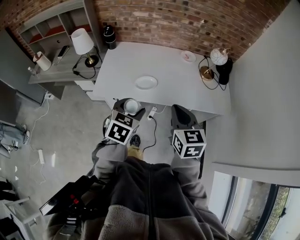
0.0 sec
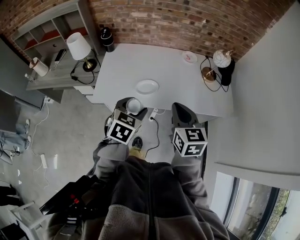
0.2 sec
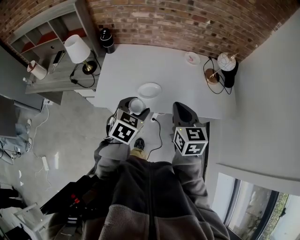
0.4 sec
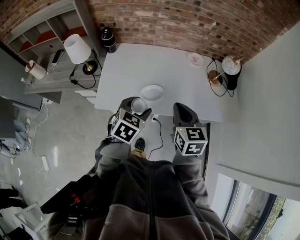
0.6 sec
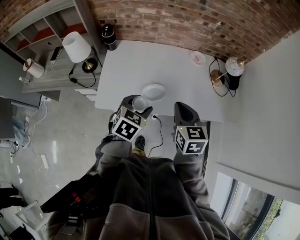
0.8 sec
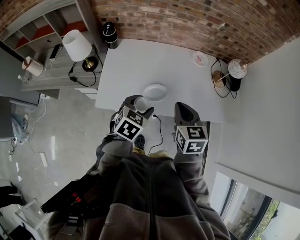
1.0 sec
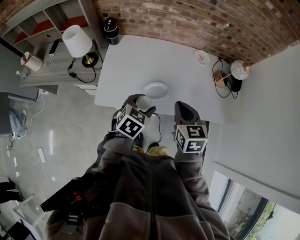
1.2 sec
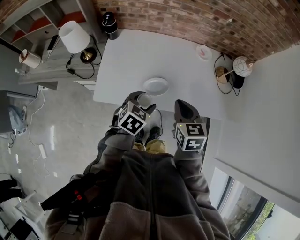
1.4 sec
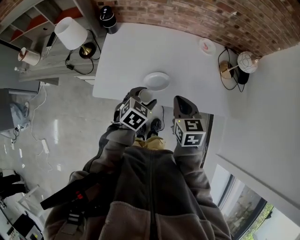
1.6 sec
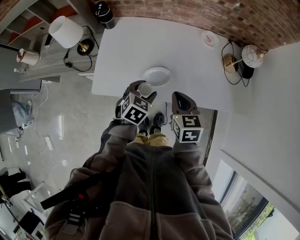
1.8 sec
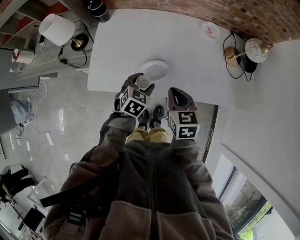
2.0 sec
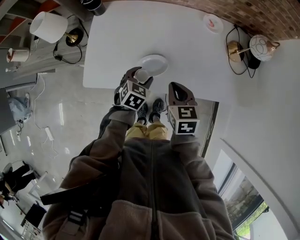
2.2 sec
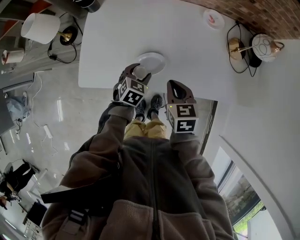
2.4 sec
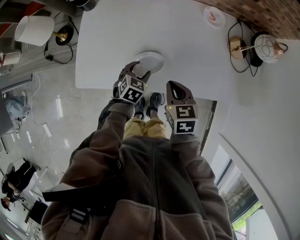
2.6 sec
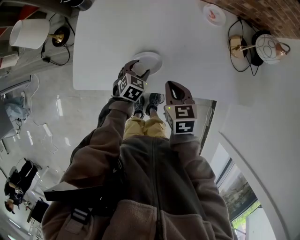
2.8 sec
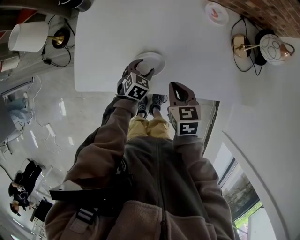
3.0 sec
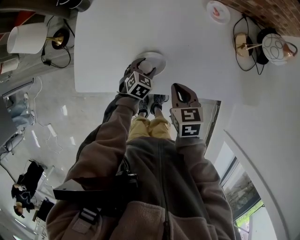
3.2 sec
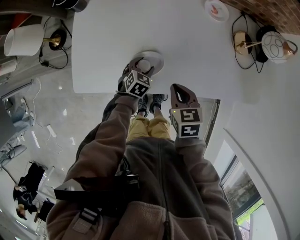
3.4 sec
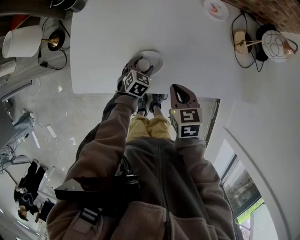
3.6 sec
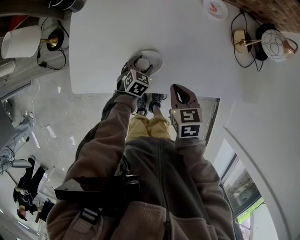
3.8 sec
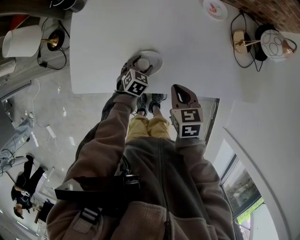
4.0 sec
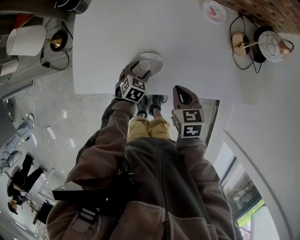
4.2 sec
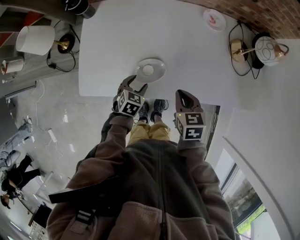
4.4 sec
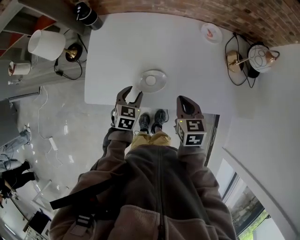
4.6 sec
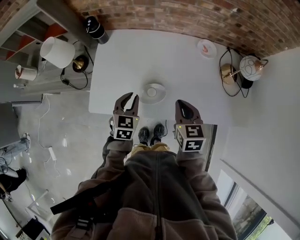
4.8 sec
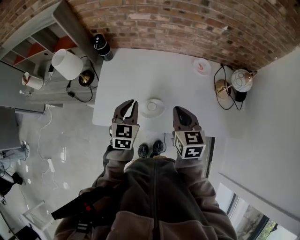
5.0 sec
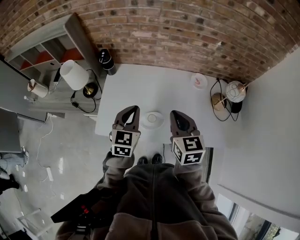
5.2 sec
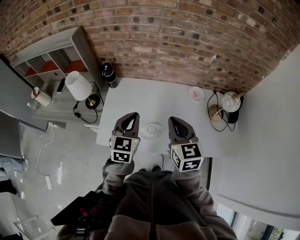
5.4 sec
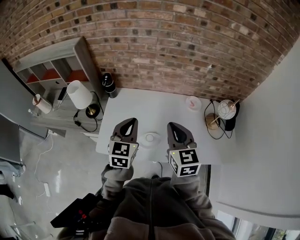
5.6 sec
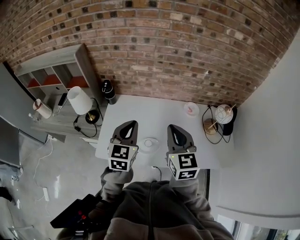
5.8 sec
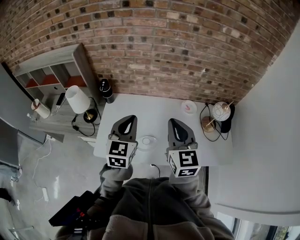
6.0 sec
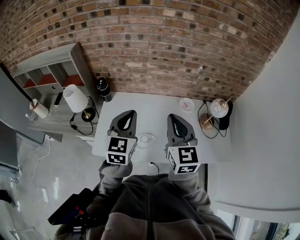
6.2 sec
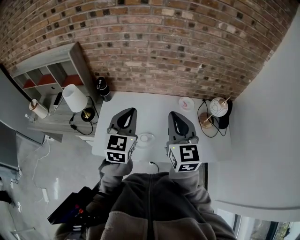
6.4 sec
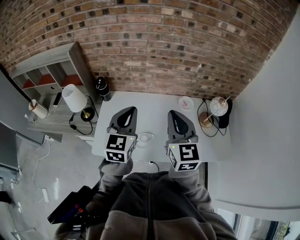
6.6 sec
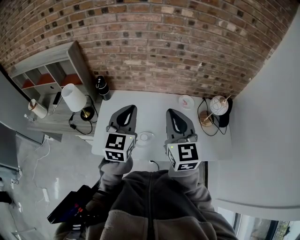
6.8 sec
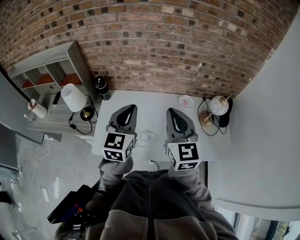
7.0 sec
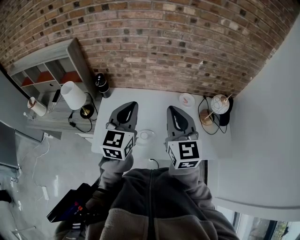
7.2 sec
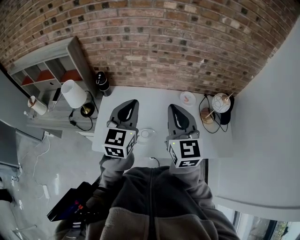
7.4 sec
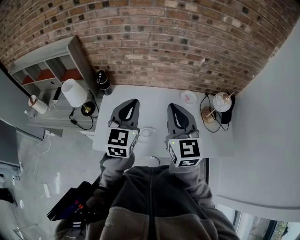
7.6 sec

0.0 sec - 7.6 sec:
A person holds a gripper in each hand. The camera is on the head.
0.0 sec - 1.6 sec: The right gripper is displaced forward, downward and to the left by approximately 20 cm; the left gripper is displaced forward and downward by roughly 20 cm.
1.6 sec - 3.0 sec: The right gripper shifts about 15 cm downward and forward. Meanwhile the left gripper shifts approximately 25 cm downward and forward.
3.0 sec - 4.6 sec: The left gripper moves upward and to the left, about 10 cm.
4.6 sec - 6.0 sec: The grippers both shift upward by about 35 cm. The right gripper tilts its fingers some 40 degrees upward; the left gripper tilts its fingers some 40 degrees upward, and closes.
6.0 sec - 7.6 sec: The grippers make only small movements.

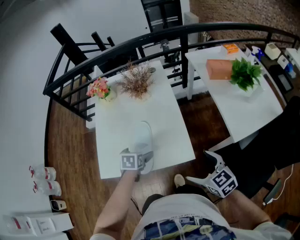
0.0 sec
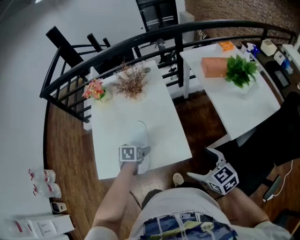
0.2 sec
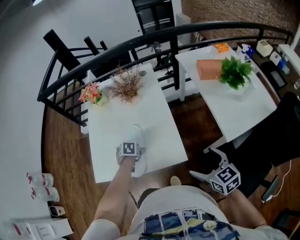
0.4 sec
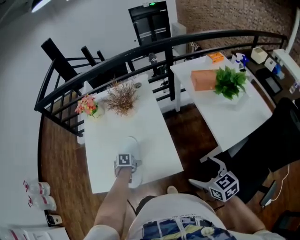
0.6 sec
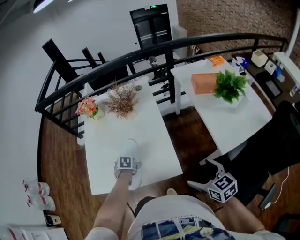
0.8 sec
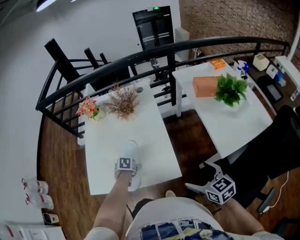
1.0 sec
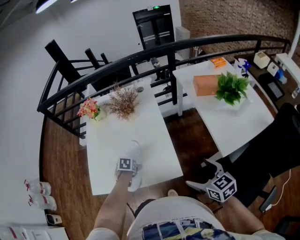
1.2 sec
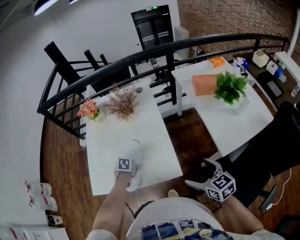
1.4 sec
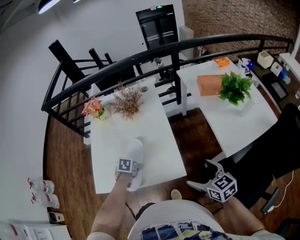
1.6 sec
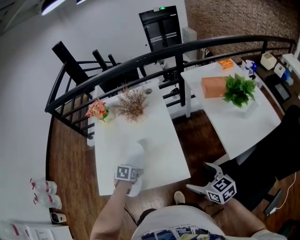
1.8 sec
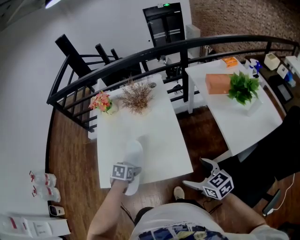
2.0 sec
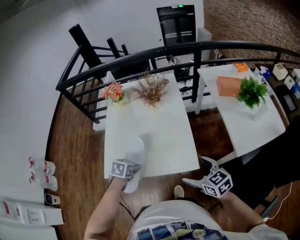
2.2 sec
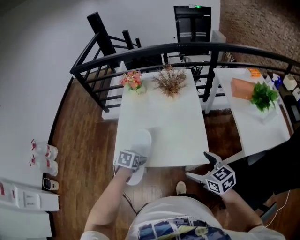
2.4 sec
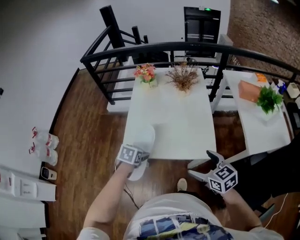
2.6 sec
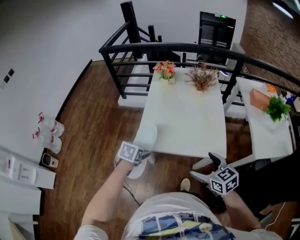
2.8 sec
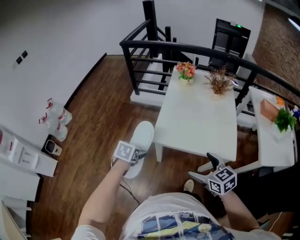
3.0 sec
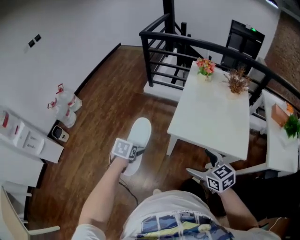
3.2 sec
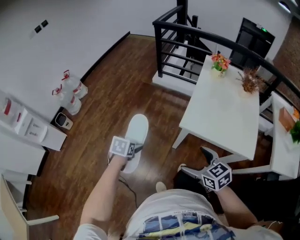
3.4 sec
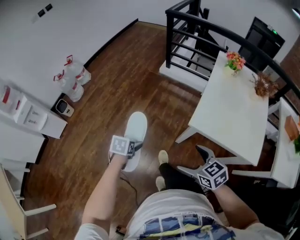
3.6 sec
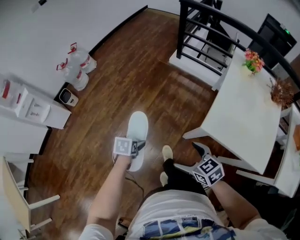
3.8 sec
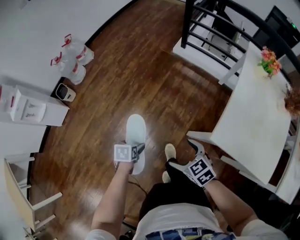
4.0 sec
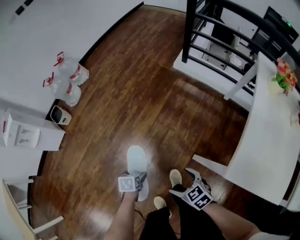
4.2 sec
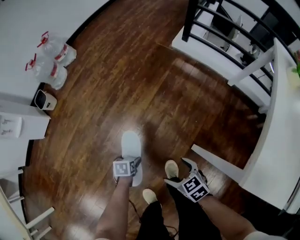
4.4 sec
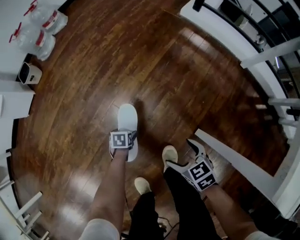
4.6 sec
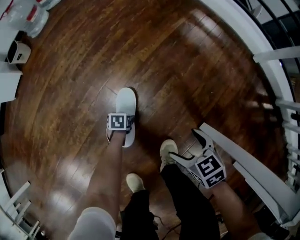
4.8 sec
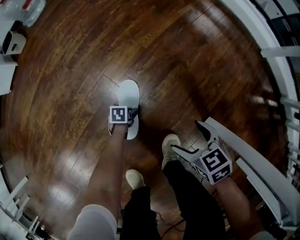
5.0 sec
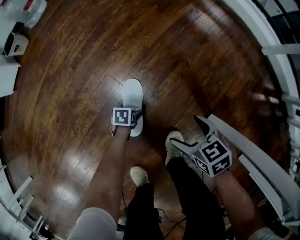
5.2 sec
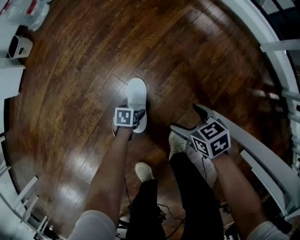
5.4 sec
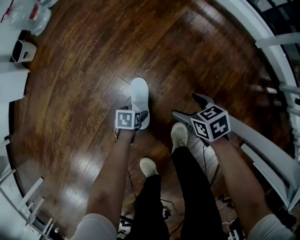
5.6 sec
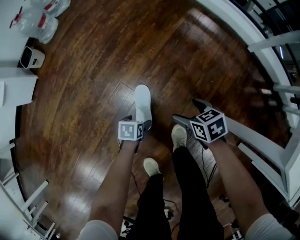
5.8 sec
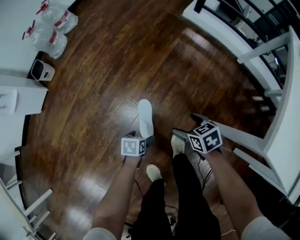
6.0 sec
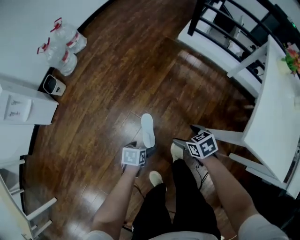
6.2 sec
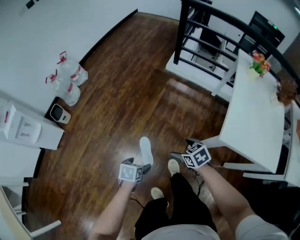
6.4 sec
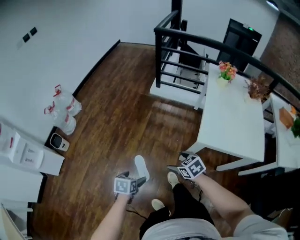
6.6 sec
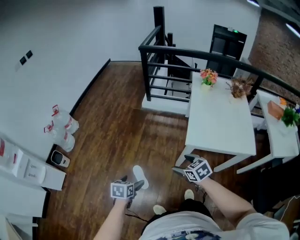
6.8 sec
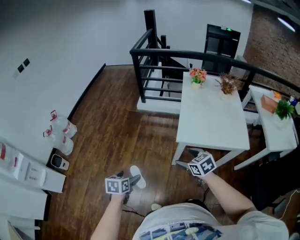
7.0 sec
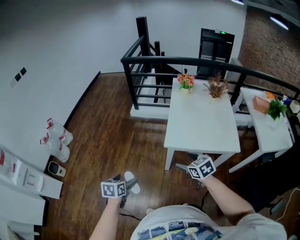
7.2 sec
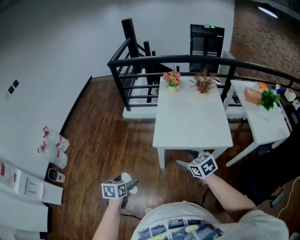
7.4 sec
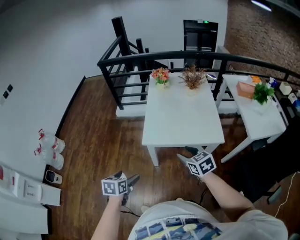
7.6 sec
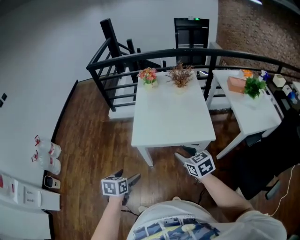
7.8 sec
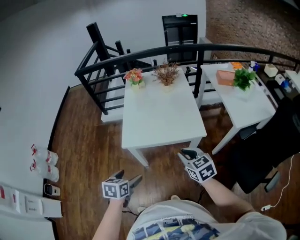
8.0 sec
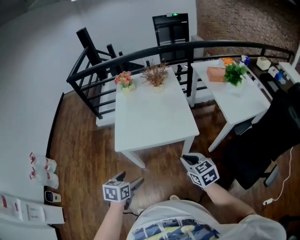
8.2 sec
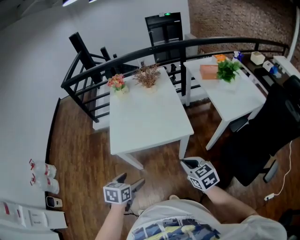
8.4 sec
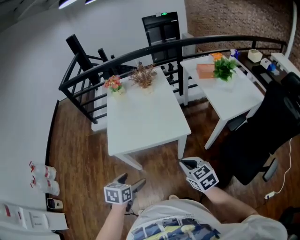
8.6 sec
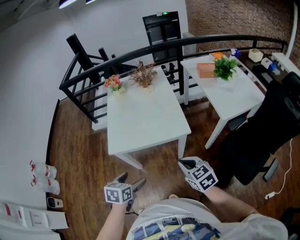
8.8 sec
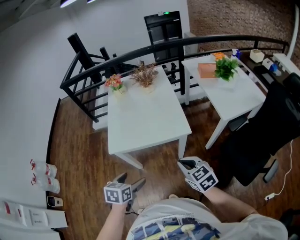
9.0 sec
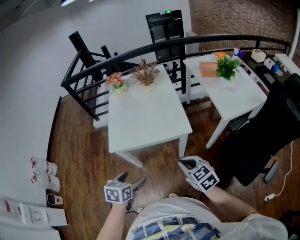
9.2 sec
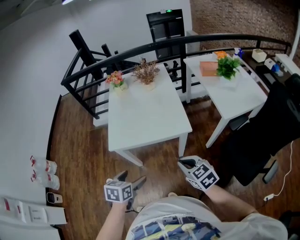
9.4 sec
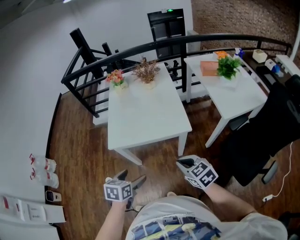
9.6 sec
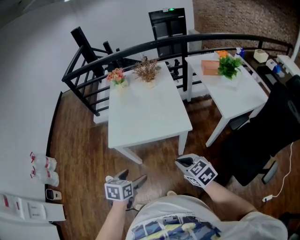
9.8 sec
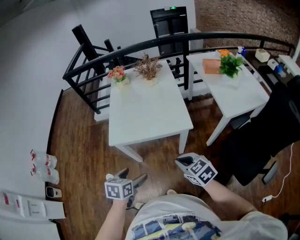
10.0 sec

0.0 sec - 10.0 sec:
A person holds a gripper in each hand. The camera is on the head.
0.0 sec - 1.4 sec: The right gripper changes place by roughly 10 cm; the left gripper travels downward by about 10 cm.
1.4 sec - 2.8 sec: The left gripper heads to the left and backward, covering some 35 cm, while the right gripper moves to the left, approximately 35 cm, and turns by some 20 degrees.
2.8 sec - 4.2 sec: Both grippers are carried approximately 50 cm. The left gripper rolls counterclockwise, seen from behind, by approximately 50 degrees; the right gripper turns by roughly 50 degrees.
4.2 sec - 5.8 sec: Both grippers travel together downward, some 35 cm.
5.8 sec - 7.2 sec: The two grippers go approximately 70 cm upward. The right gripper swivels roughly 40 degrees, while the left gripper rotates about 40 degrees.
7.2 sec - 8.6 sec: The grippers both shift to the right by approximately 40 cm. The left gripper swivels approximately 30 degrees, while the right gripper rotates about 20 degrees, and closes.
8.6 sec - 10.0 sec: There are only small adjustments of the grippers.

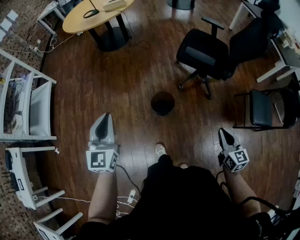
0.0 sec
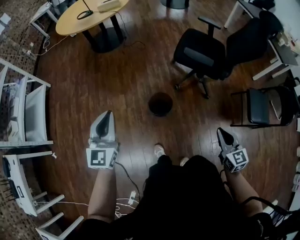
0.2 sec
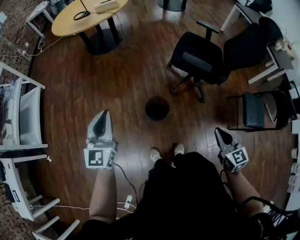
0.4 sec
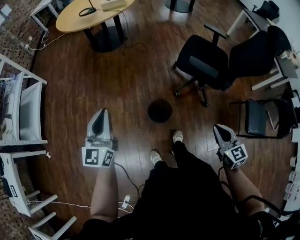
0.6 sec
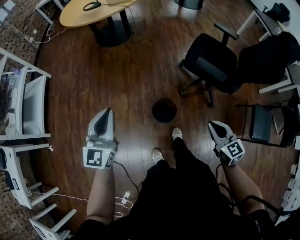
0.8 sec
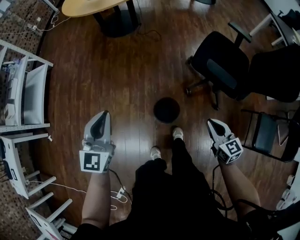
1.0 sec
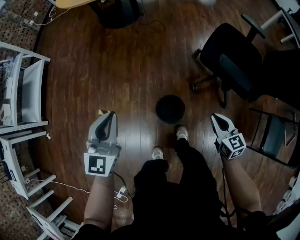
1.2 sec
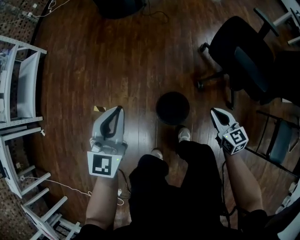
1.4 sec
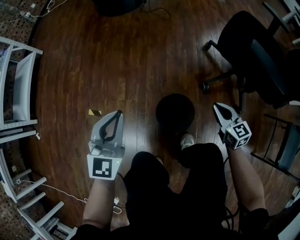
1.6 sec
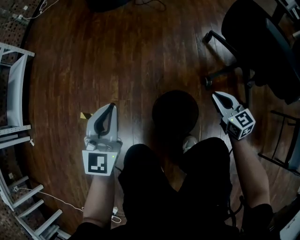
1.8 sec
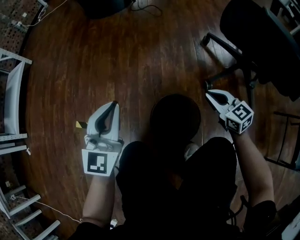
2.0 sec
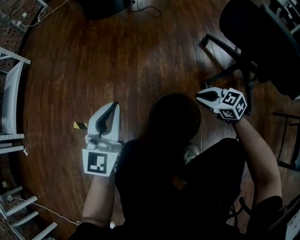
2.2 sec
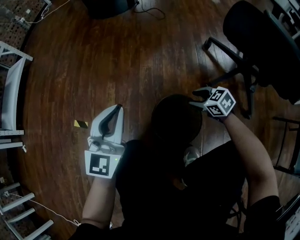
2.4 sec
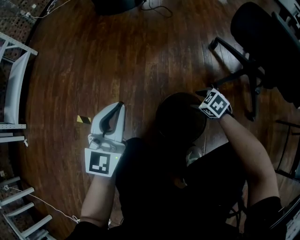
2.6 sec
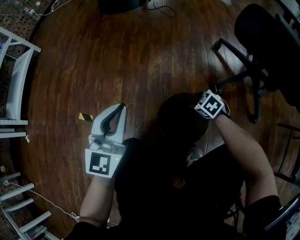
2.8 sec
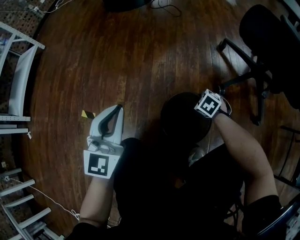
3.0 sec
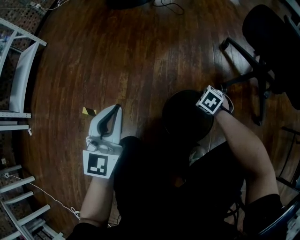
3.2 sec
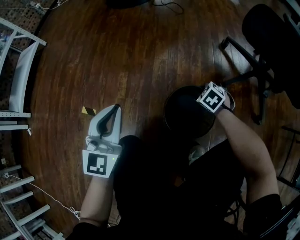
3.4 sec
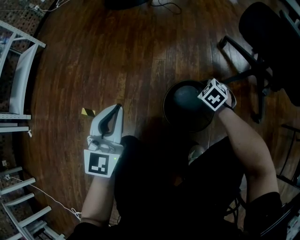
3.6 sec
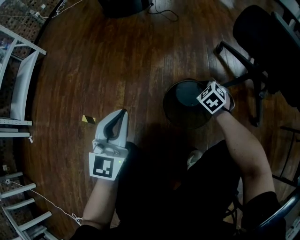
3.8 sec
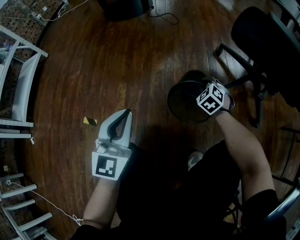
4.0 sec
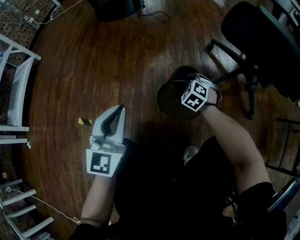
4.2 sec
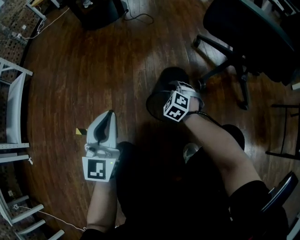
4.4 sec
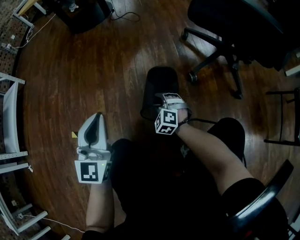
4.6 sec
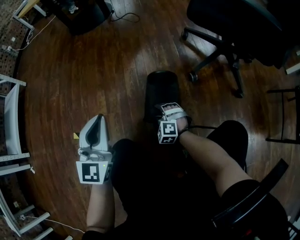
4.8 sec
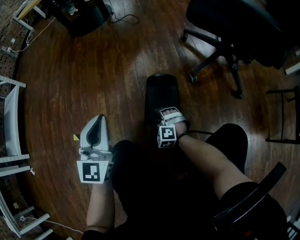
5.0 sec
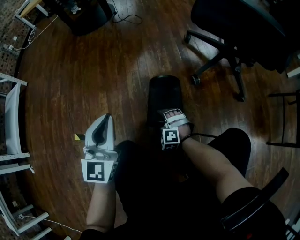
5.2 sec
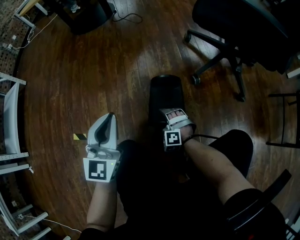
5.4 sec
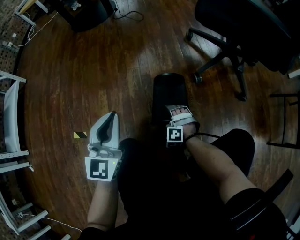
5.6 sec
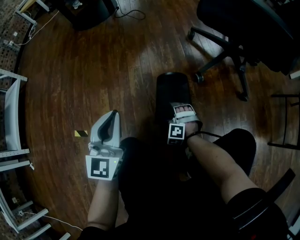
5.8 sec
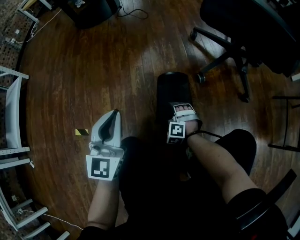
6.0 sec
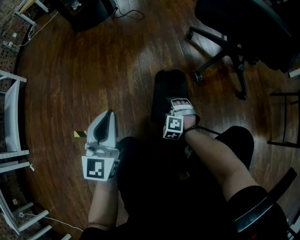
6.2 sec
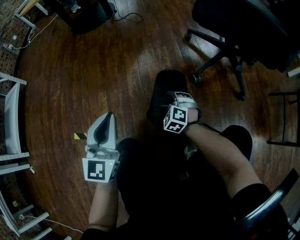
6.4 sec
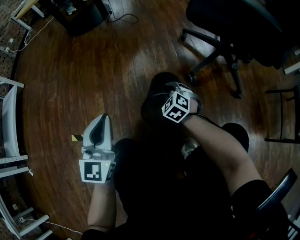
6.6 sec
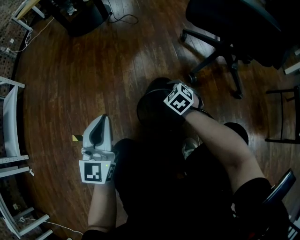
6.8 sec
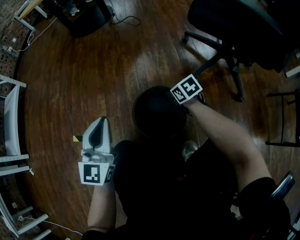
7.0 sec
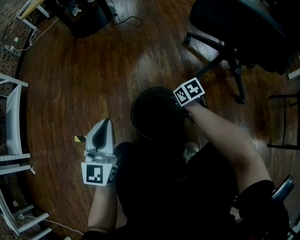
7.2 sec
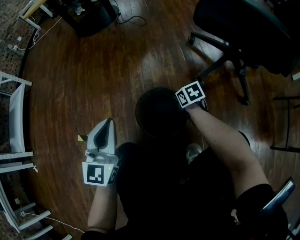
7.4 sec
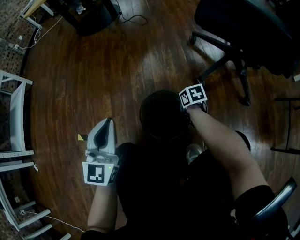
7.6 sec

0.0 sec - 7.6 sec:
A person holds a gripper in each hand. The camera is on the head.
0.0 sec - 1.6 sec: Both grippers move downward and forward, roughly 40 cm. The right gripper turns by about 30 degrees.
1.6 sec - 3.0 sec: The left gripper travels downward by about 15 cm. The right gripper shifts roughly 30 cm downward, angles its fingers downward, by approximately 40 degrees, and opens and closes again.
3.0 sec - 4.6 sec: The right gripper changes place by roughly 10 cm, and swivels roughly 40 degrees.
4.6 sec - 6.0 sec: The right gripper heads downward, covering about 5 cm, and opens up.
6.0 sec - 7.6 sec: The right gripper reaches some 10 cm upward, then returns, rolls clockwise, seen from behind, by roughly 80 degrees, and closes its fingers.
